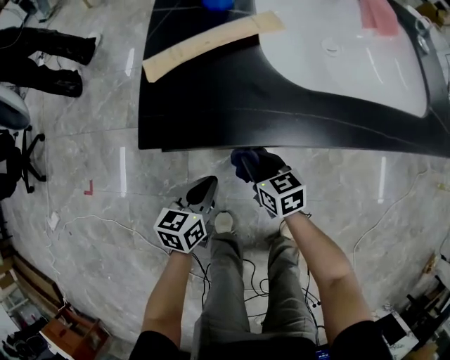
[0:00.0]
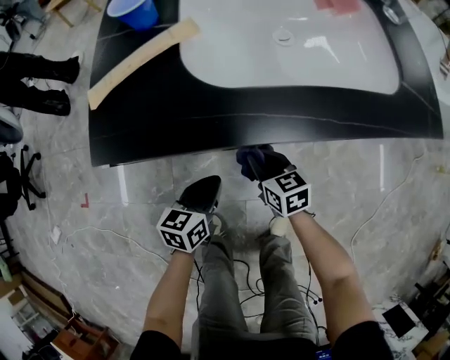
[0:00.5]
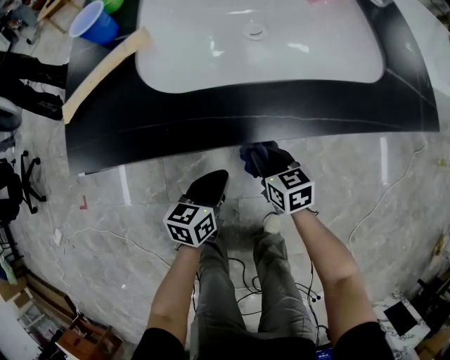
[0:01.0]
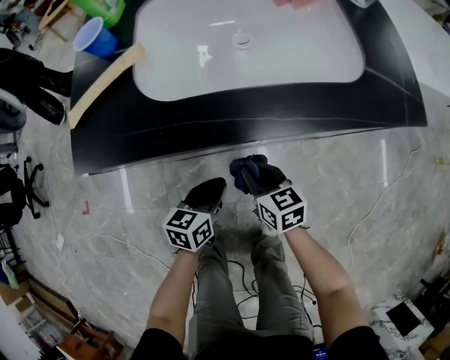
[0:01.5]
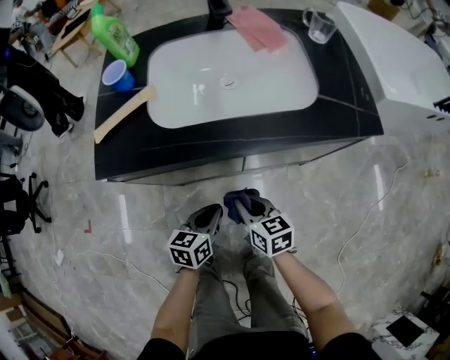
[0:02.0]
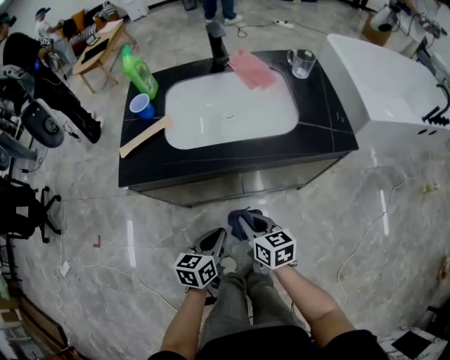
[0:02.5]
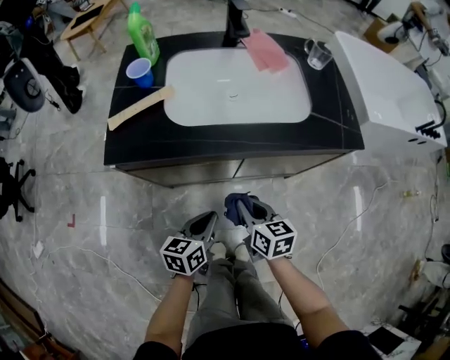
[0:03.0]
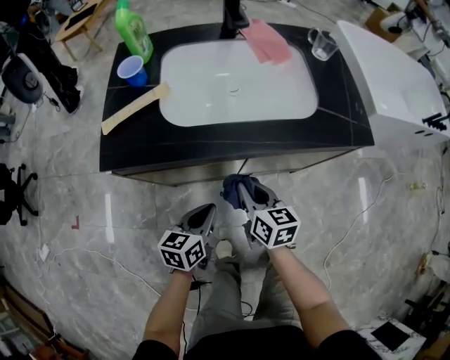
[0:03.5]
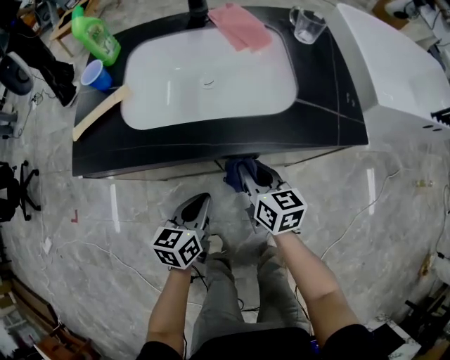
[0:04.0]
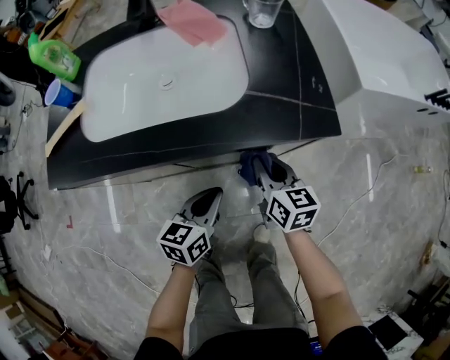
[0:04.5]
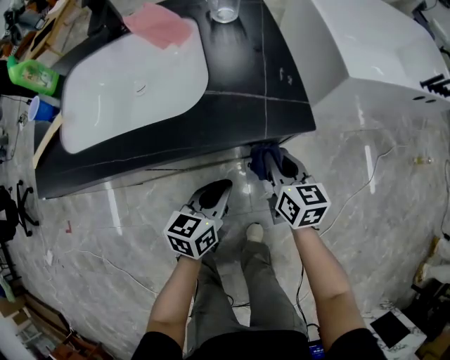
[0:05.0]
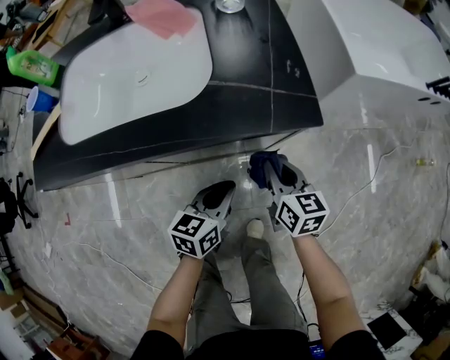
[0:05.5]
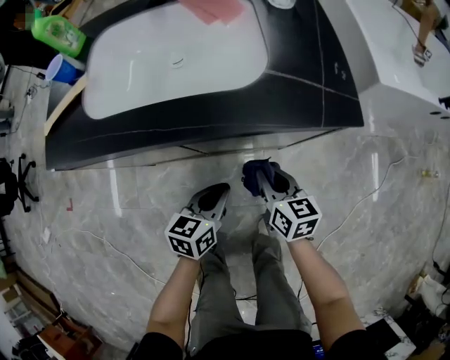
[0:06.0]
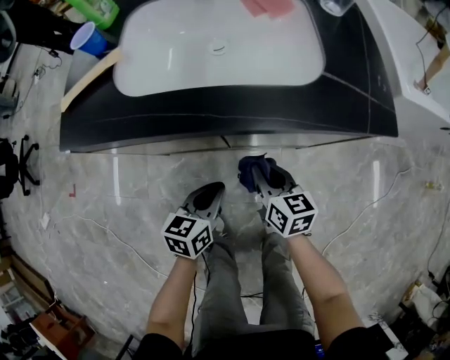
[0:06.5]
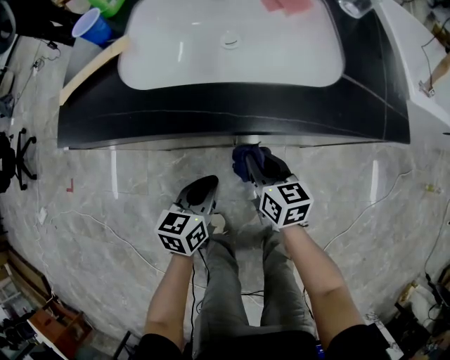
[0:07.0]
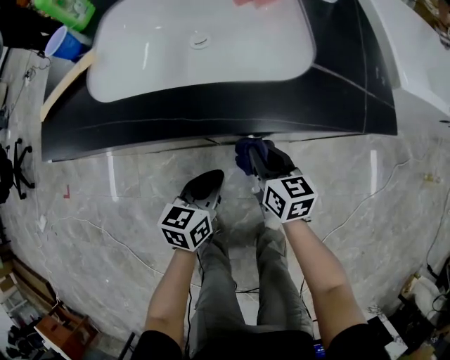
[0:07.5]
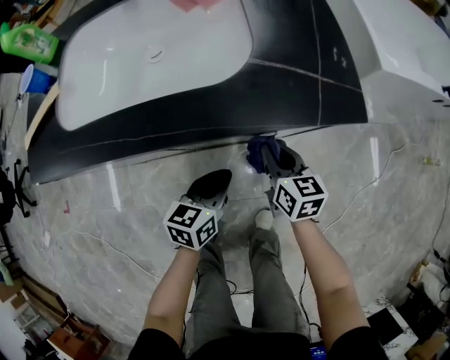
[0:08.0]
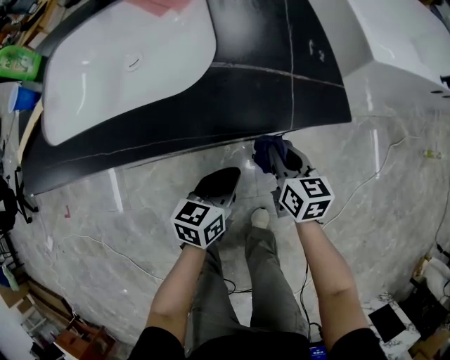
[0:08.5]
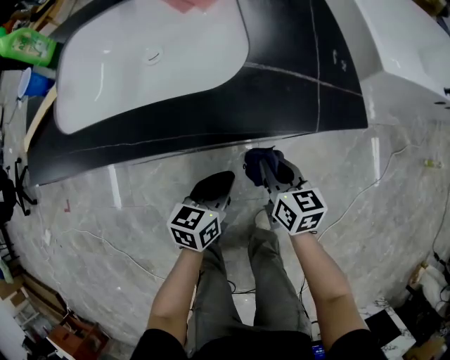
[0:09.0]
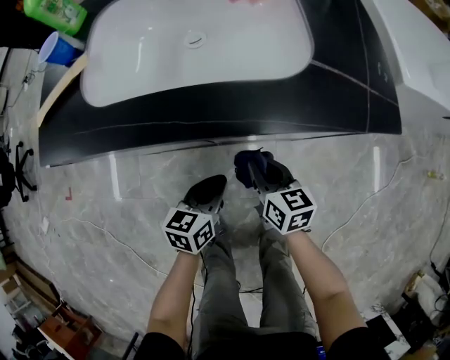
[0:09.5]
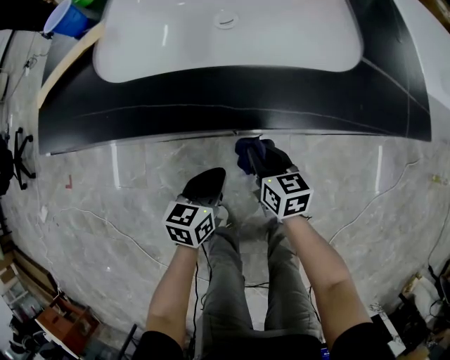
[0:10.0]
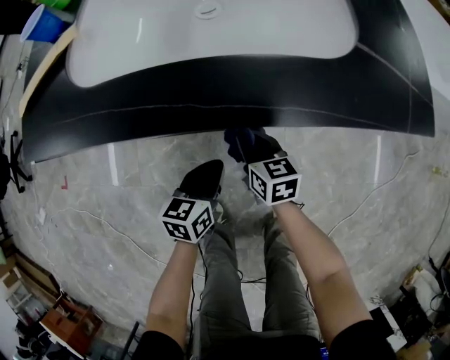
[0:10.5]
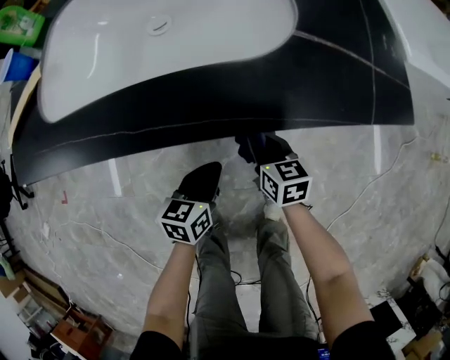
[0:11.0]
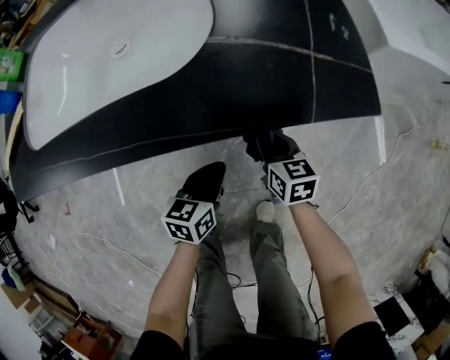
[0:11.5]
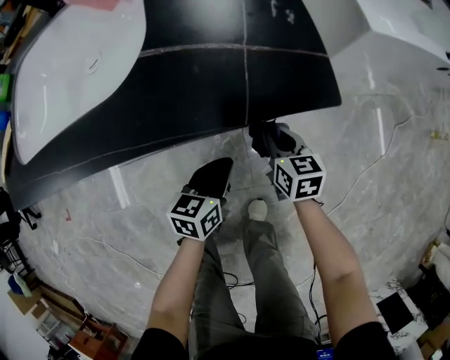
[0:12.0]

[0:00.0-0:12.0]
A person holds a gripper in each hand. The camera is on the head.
0:00.0 to 0:02.0: The right gripper shifts approximately 25 cm to the right, upward and backward. The left gripper travels to the right by roughly 20 cm.
0:02.0 to 0:04.0: The left gripper is displaced to the right by approximately 5 cm, while the right gripper moves to the right, forward and upward, about 15 cm.
0:04.0 to 0:06.0: Both grippers move to the right and downward, some 15 cm.
0:06.0 to 0:08.0: The right gripper goes about 5 cm forward, and moves some 15 cm to the left and comes back; the left gripper moves about 15 cm to the left and comes back.
0:08.0 to 0:10.0: Both grippers travel together to the left, approximately 15 cm.
0:10.0 to 0:12.0: The two grippers go some 30 cm to the right.

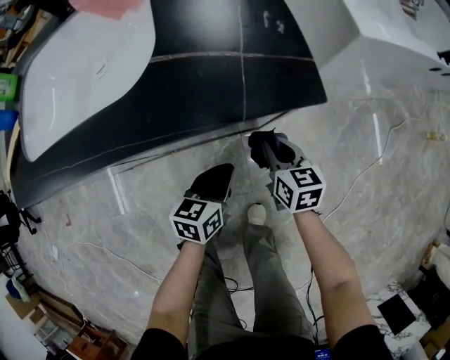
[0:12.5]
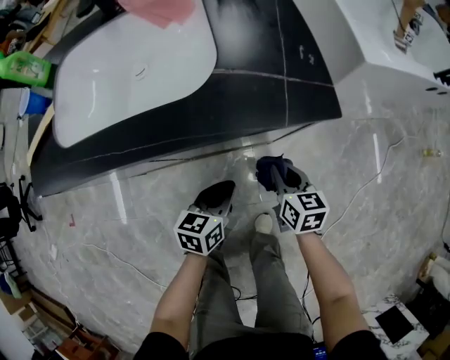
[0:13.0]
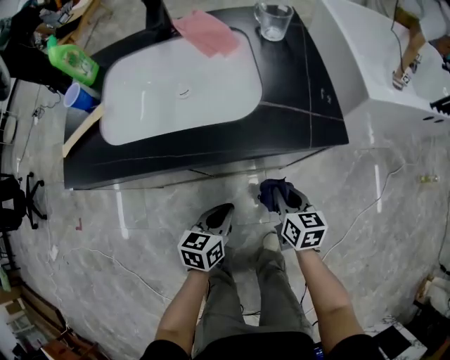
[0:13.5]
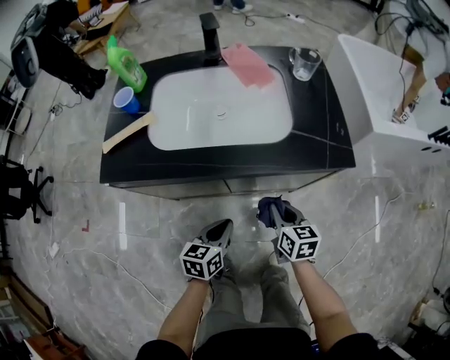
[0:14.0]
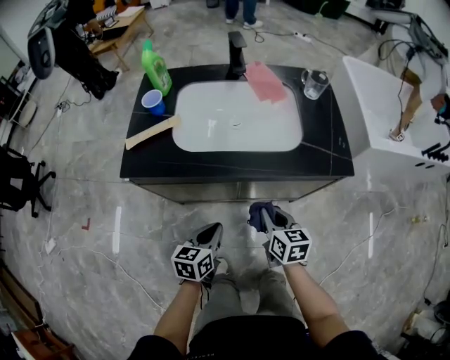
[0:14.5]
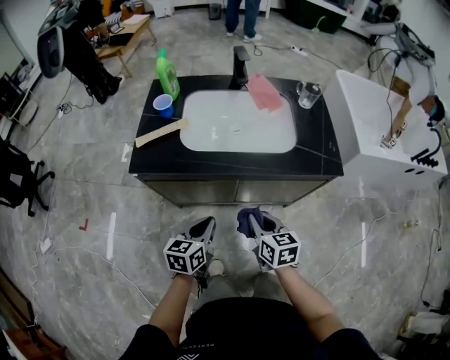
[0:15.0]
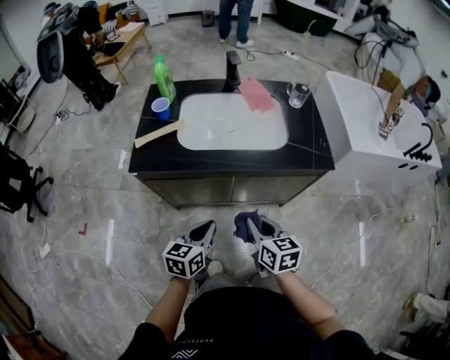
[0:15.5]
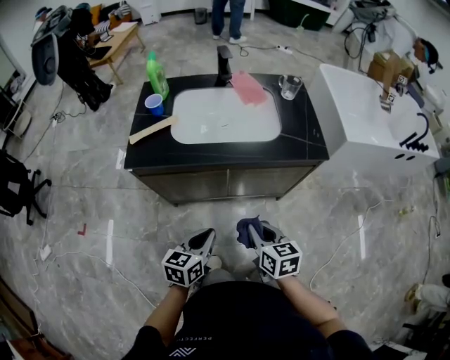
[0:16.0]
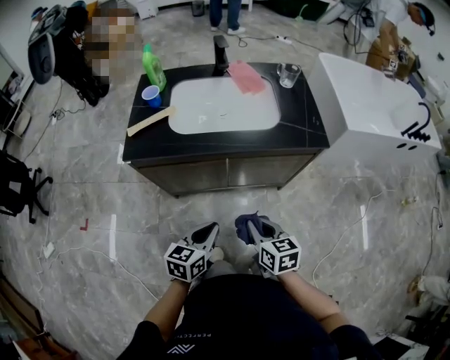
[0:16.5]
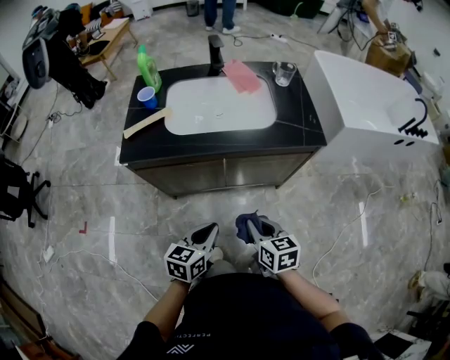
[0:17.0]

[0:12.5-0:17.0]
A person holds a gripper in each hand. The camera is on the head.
0:12.5 to 0:14.5: The two grippers go roughly 35 cm to the left and upward.
0:14.5 to 0:17.0: The left gripper shifts approximately 15 cm backward and upward. The right gripper goes approximately 15 cm backward.

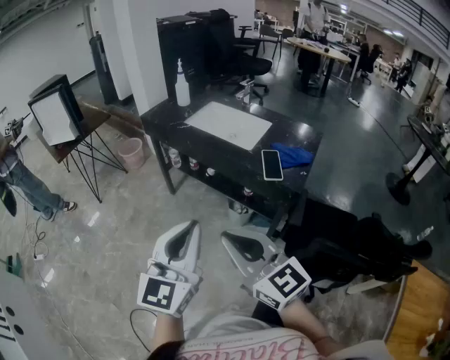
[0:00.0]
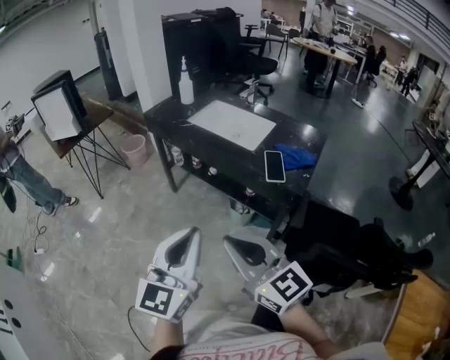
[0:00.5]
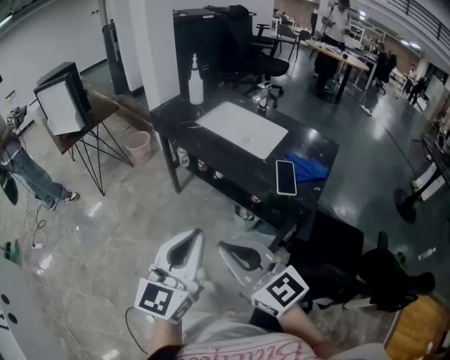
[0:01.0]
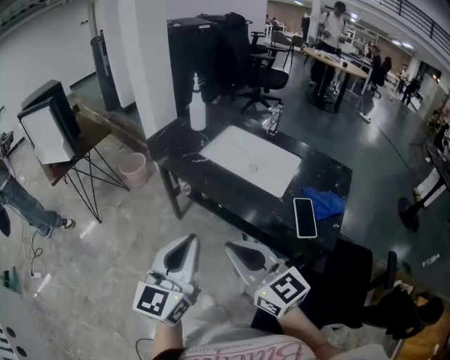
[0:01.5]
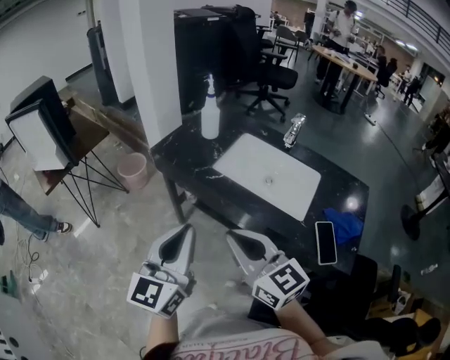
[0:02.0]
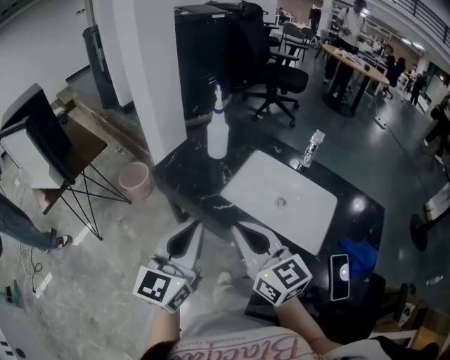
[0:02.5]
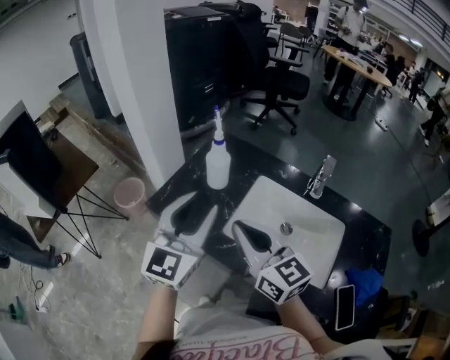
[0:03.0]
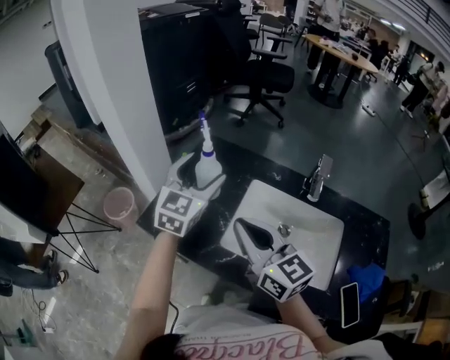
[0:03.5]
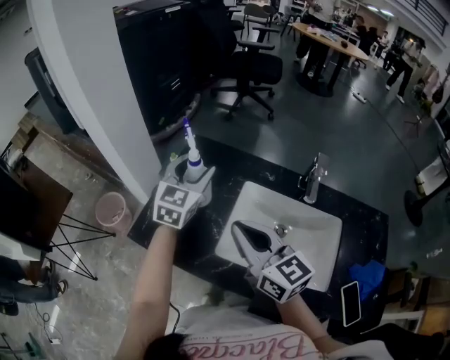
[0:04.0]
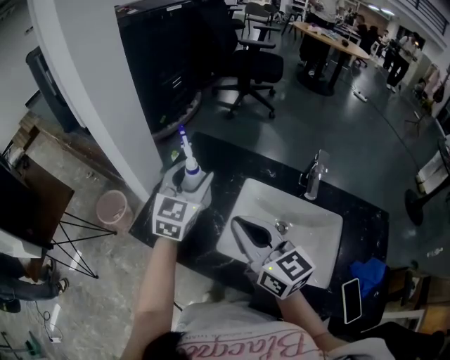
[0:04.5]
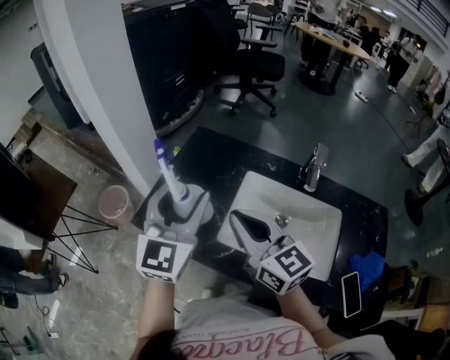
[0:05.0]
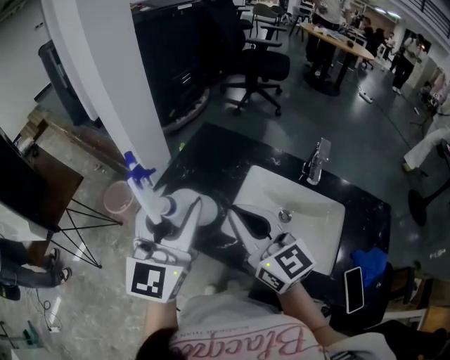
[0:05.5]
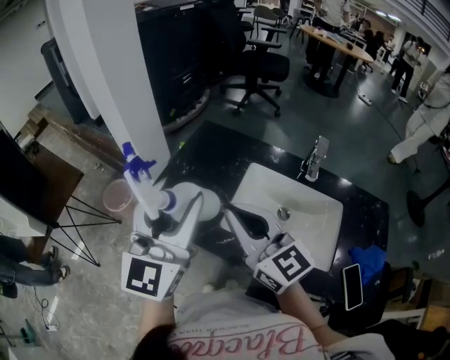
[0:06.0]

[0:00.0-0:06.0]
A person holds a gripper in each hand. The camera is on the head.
0:00.0 to 0:02.0: The two grippers go about 35 cm forward.
0:02.0 to 0:04.0: The left gripper goes about 50 cm forward, changes its angle by approximately 30 degrees, and opens up. Meanwhile the right gripper is displaced forward by roughly 35 cm.
0:04.0 to 0:06.0: The left gripper goes about 25 cm backward and upward, and rotates some 30 degrees. Meanwhile the right gripper moves backward, approximately 5 cm.

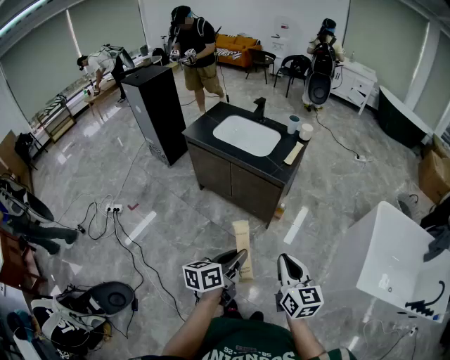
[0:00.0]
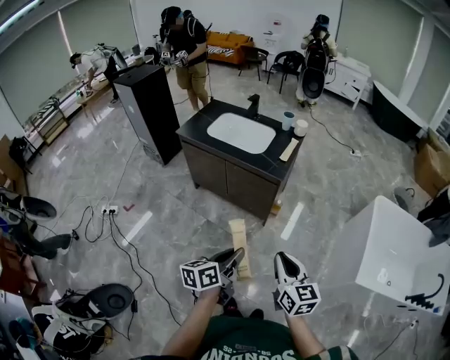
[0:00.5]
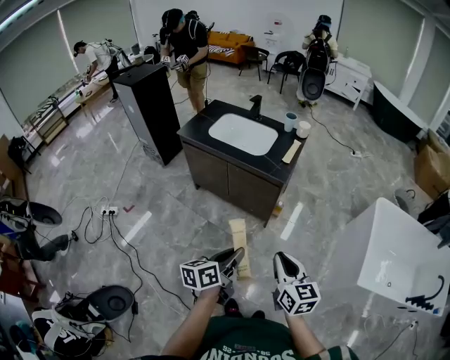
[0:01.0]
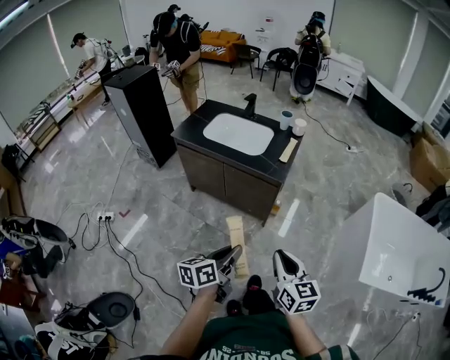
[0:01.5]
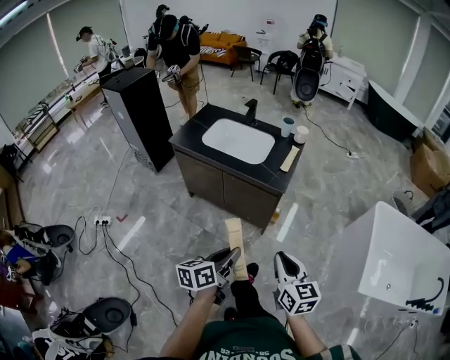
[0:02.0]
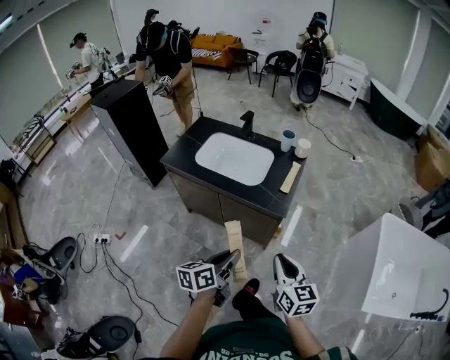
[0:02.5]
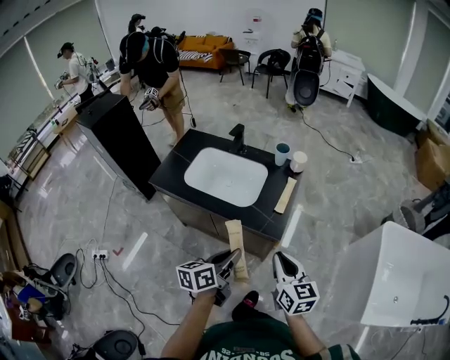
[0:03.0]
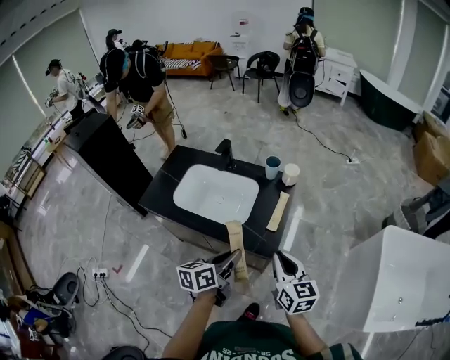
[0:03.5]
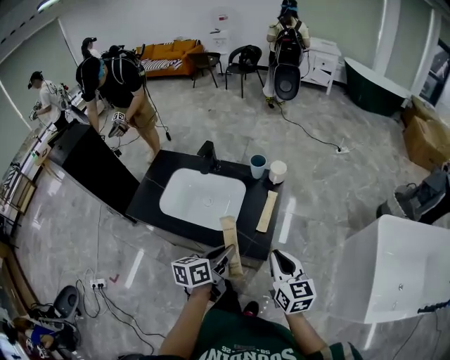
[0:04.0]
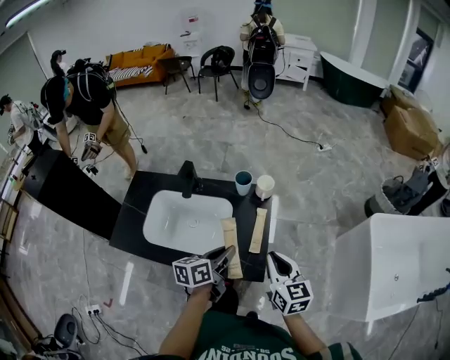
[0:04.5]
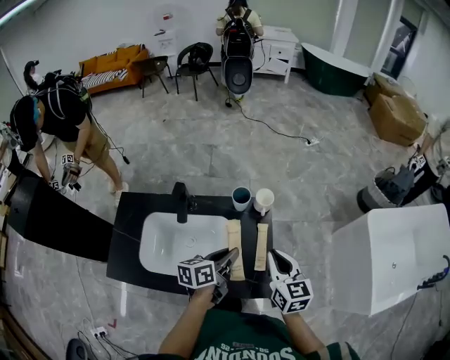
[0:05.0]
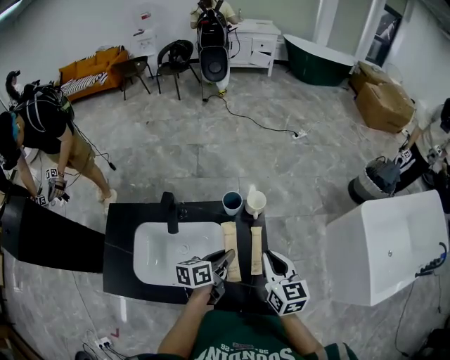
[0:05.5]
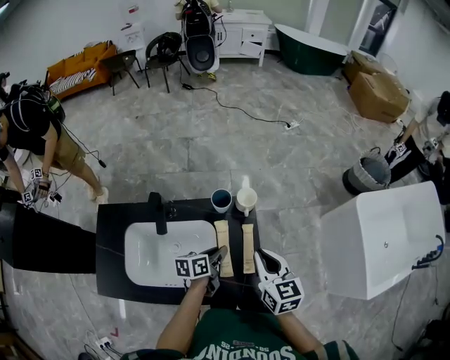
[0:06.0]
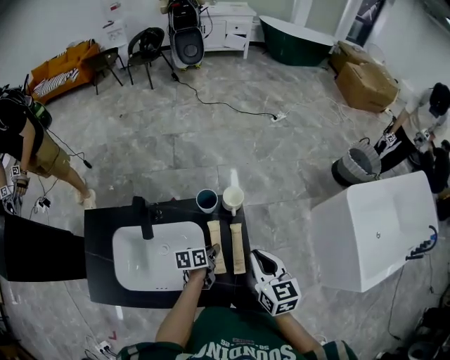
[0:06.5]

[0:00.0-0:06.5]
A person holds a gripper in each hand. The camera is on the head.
0:00.0 to 0:02.0: The right gripper travels forward by approximately 10 cm. The left gripper heads forward and to the left, covering roughly 10 cm.
0:02.0 to 0:04.5: The two grippers travel together, forward, about 60 cm. The left gripper turns by about 20 degrees.
0:04.5 to 0:06.5: The left gripper goes roughly 25 cm downward and forward, and rotates roughly 30 degrees, while the right gripper goes some 15 cm forward.
